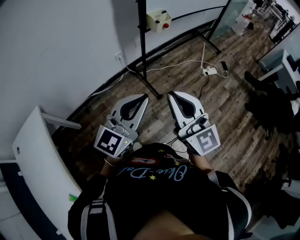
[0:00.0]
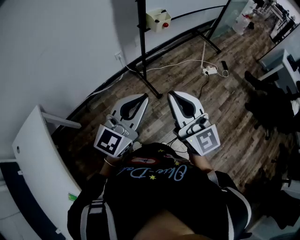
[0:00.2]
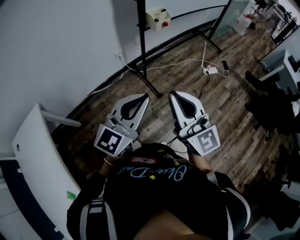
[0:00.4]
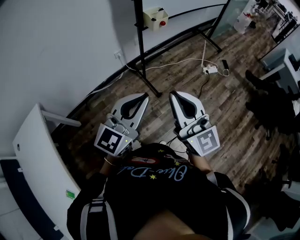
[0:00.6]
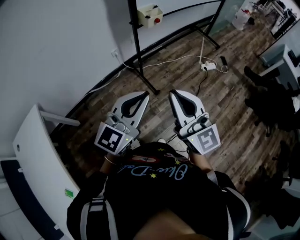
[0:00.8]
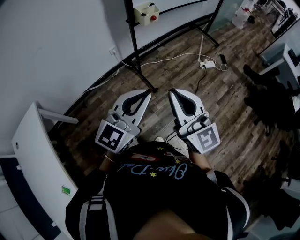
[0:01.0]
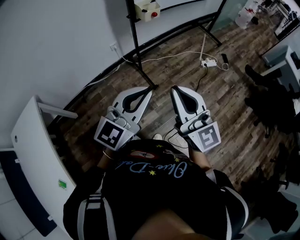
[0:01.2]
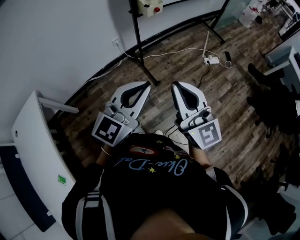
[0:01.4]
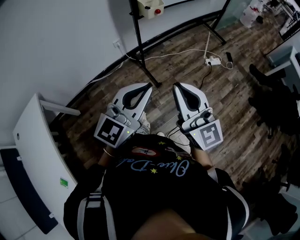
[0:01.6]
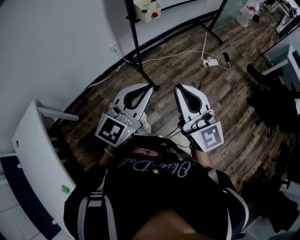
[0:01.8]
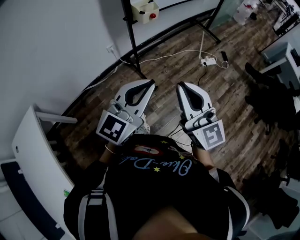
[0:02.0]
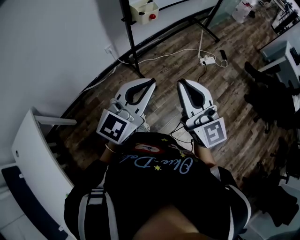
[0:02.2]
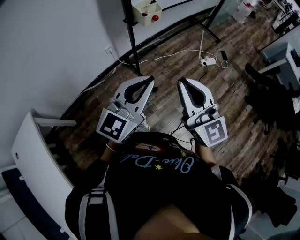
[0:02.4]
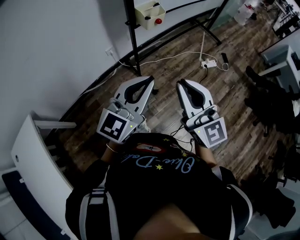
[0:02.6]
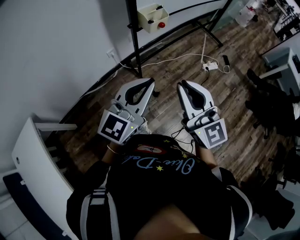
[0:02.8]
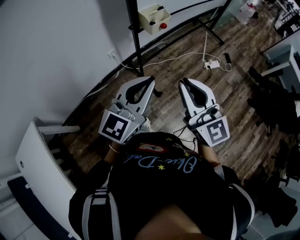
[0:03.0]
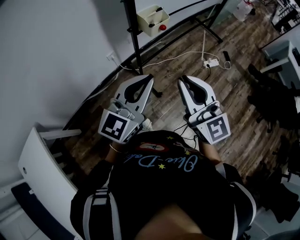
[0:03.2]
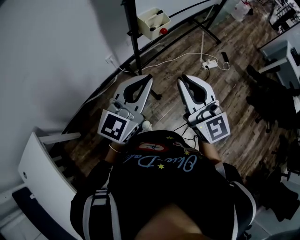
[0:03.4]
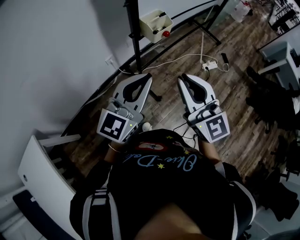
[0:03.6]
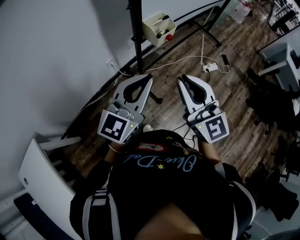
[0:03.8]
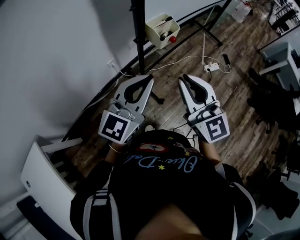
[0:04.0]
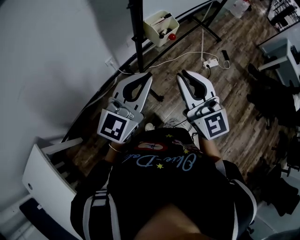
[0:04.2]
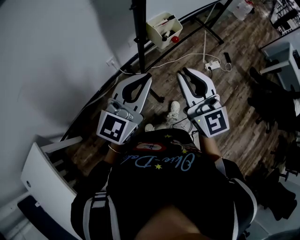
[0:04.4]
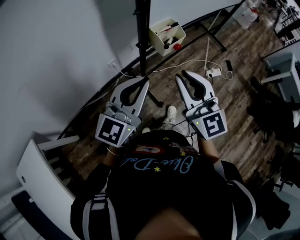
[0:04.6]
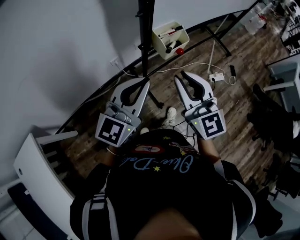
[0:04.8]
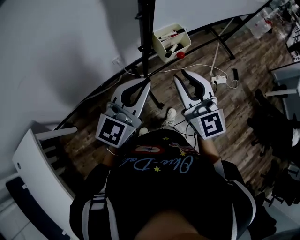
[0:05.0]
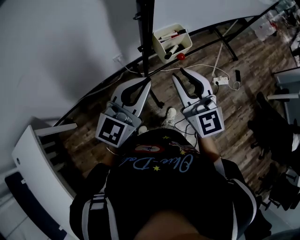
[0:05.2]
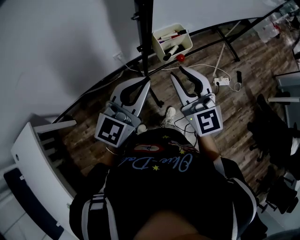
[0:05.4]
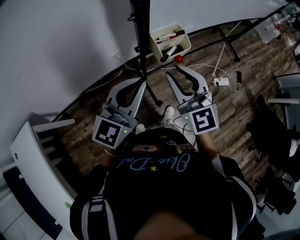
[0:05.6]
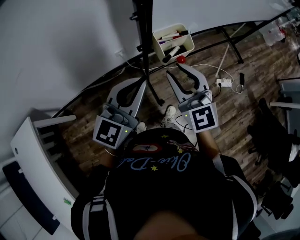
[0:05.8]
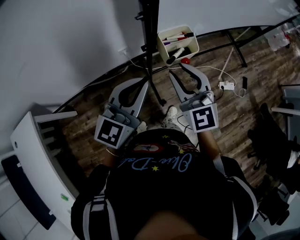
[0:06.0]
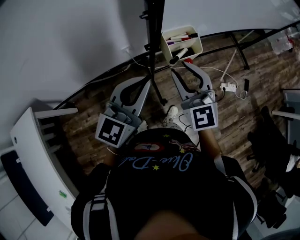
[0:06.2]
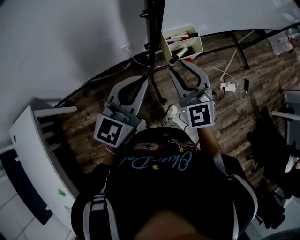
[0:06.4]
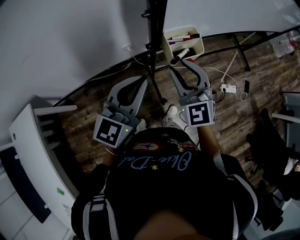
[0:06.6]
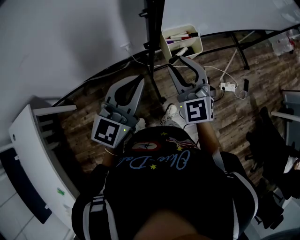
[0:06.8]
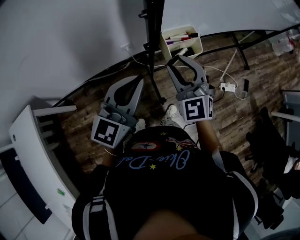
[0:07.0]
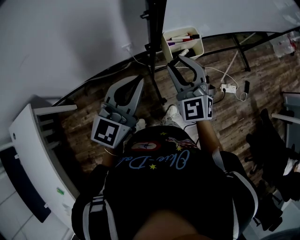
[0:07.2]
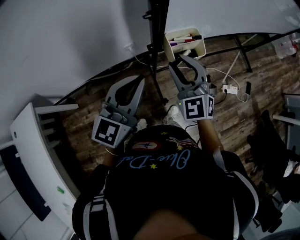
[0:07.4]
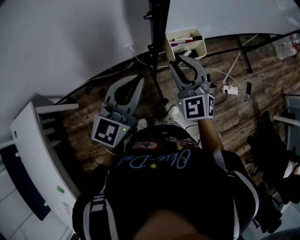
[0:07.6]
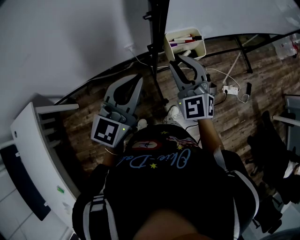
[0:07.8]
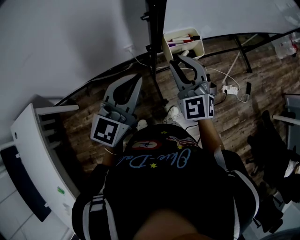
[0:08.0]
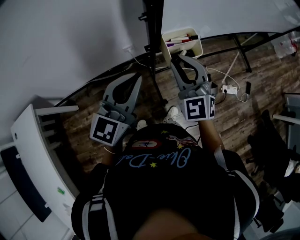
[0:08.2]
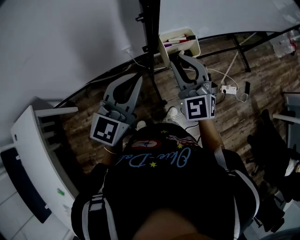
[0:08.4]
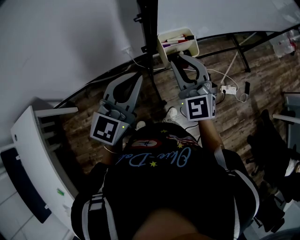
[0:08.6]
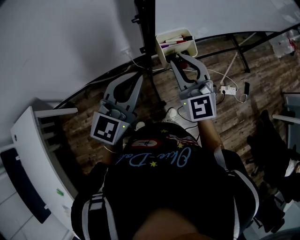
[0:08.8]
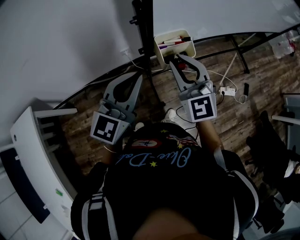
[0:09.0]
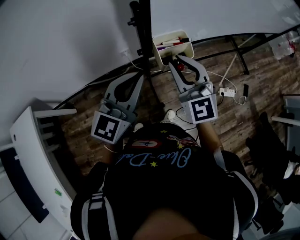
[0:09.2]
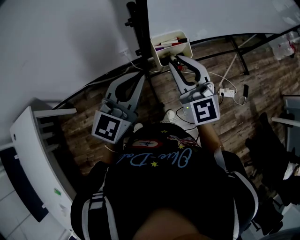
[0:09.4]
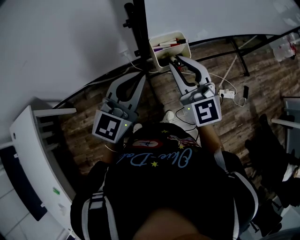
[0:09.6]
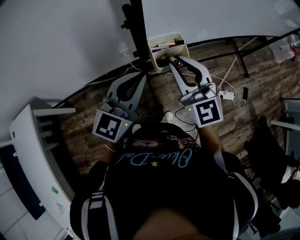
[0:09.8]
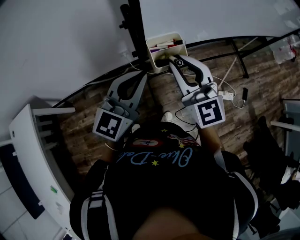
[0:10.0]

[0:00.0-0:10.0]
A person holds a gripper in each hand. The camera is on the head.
0:00.0 to 0:01.4: Both grippers travel together to the right, about 10 cm.
0:01.4 to 0:02.8: The two grippers go roughly 15 cm forward.
0:02.8 to 0:04.2: Both grippers move forward and to the left, roughly 15 cm.
0:04.2 to 0:05.8: The left gripper is displaced forward by about 10 cm. The right gripper goes some 15 cm forward and downward.
0:05.8 to 0:07.2: The right gripper changes place by about 5 cm.
0:07.2 to 0:08.6: The grippers move only a little.
0:08.6 to 0:10.0: The right gripper moves approximately 5 cm. The left gripper is displaced to the right by roughly 5 cm.

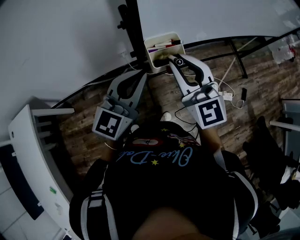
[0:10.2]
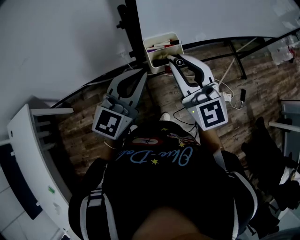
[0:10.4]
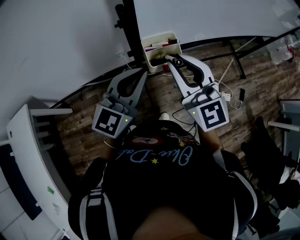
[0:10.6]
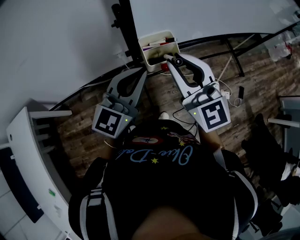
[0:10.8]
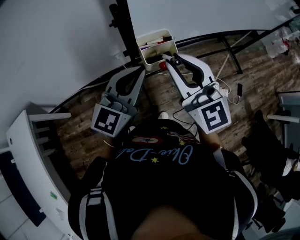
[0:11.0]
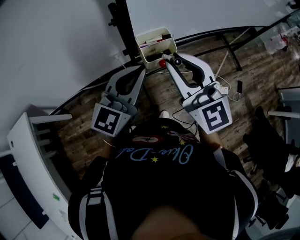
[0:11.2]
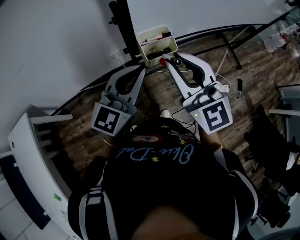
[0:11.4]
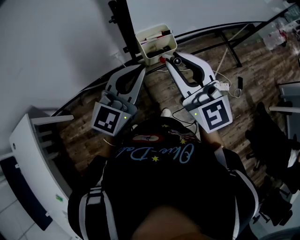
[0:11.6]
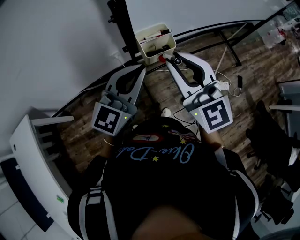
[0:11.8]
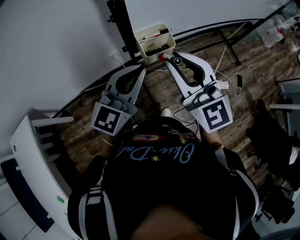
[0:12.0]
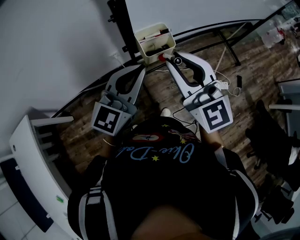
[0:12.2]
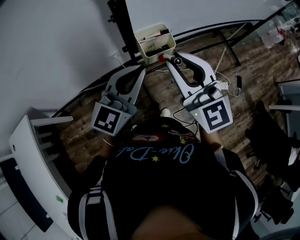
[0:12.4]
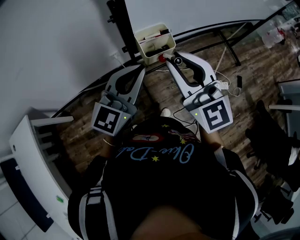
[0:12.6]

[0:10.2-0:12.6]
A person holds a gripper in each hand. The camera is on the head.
0:10.2 to 0:11.4: The right gripper moves about 5 cm.
0:11.4 to 0:12.6: The two grippers keep their place.

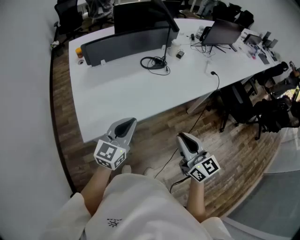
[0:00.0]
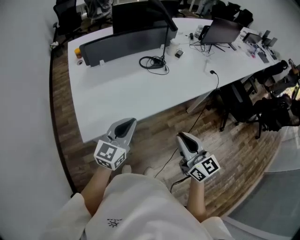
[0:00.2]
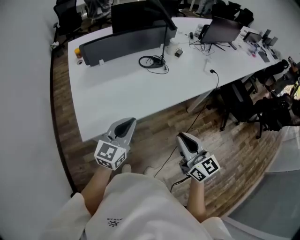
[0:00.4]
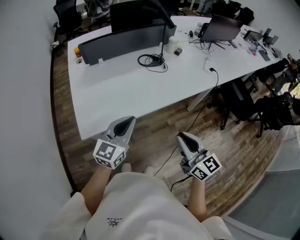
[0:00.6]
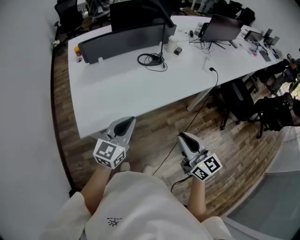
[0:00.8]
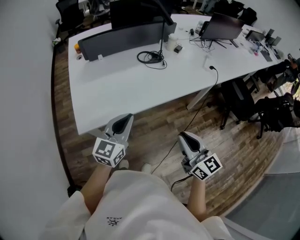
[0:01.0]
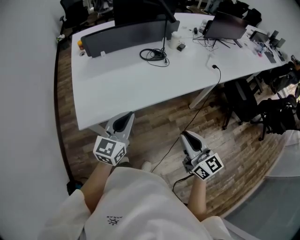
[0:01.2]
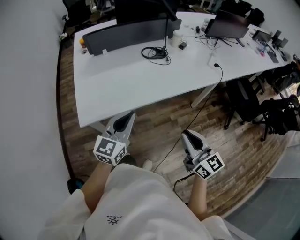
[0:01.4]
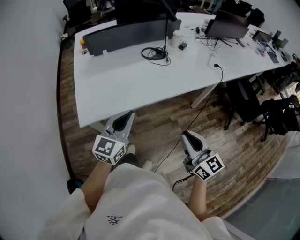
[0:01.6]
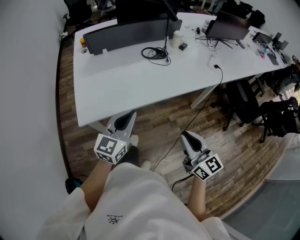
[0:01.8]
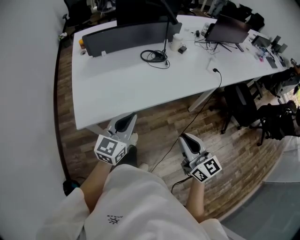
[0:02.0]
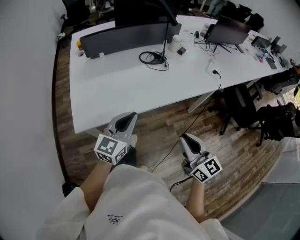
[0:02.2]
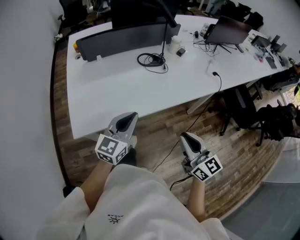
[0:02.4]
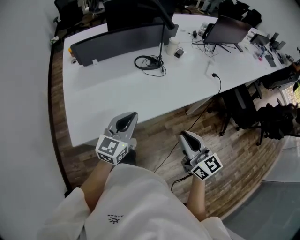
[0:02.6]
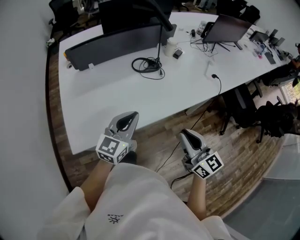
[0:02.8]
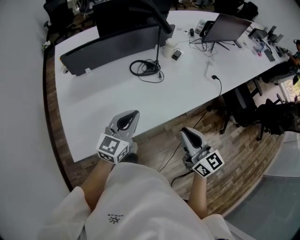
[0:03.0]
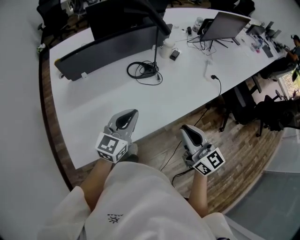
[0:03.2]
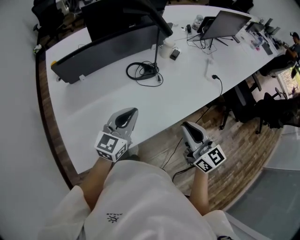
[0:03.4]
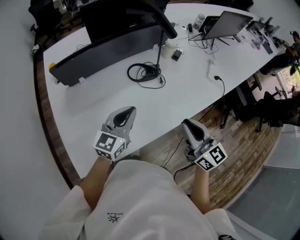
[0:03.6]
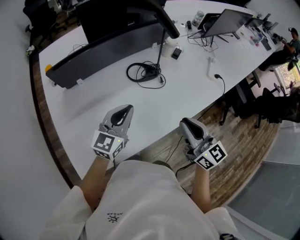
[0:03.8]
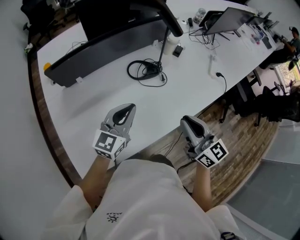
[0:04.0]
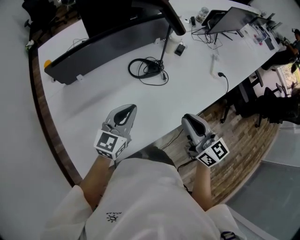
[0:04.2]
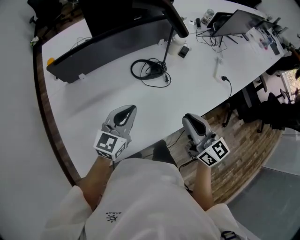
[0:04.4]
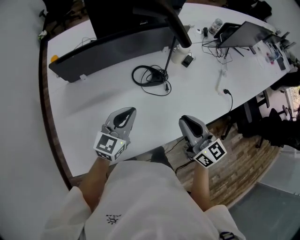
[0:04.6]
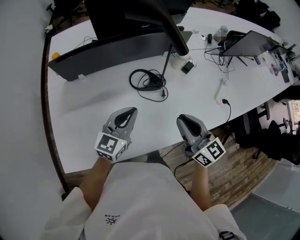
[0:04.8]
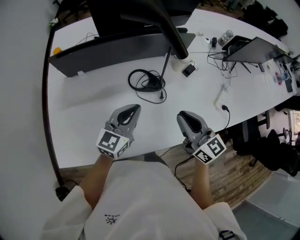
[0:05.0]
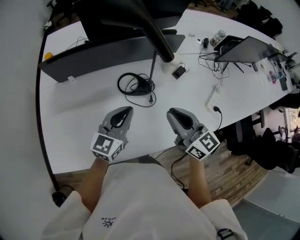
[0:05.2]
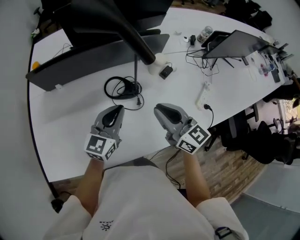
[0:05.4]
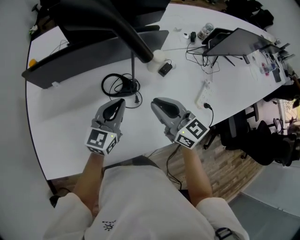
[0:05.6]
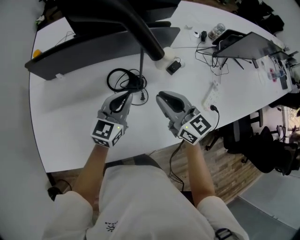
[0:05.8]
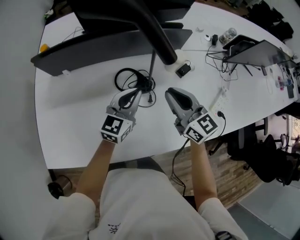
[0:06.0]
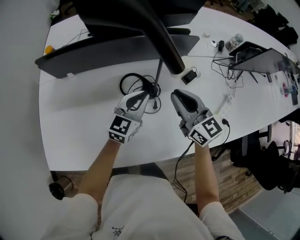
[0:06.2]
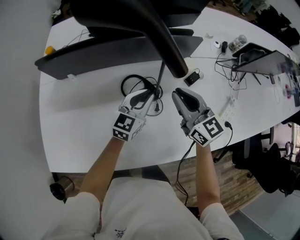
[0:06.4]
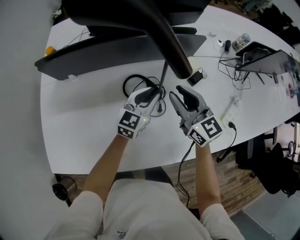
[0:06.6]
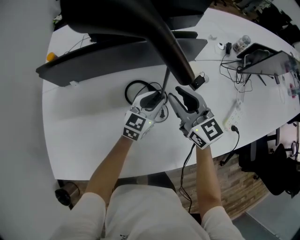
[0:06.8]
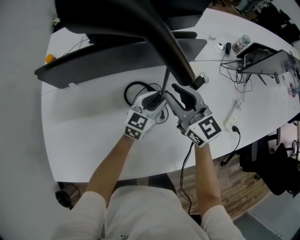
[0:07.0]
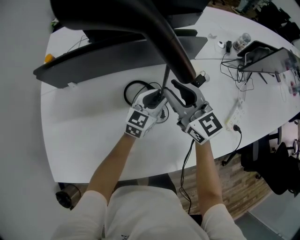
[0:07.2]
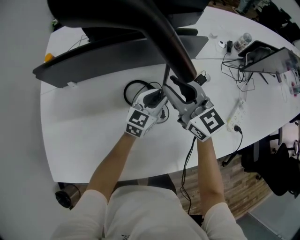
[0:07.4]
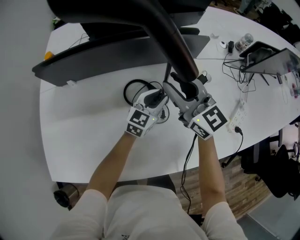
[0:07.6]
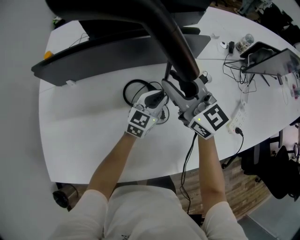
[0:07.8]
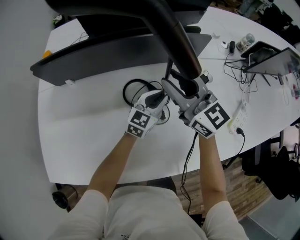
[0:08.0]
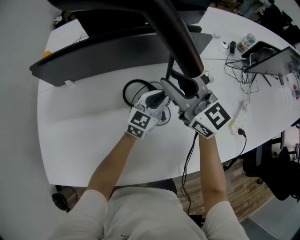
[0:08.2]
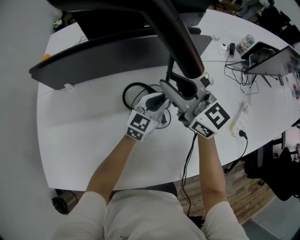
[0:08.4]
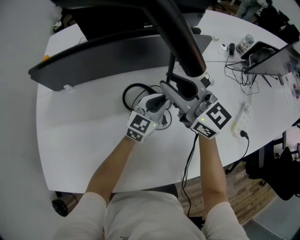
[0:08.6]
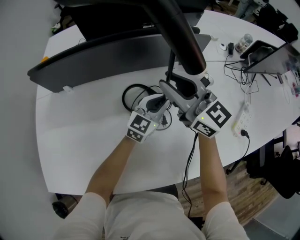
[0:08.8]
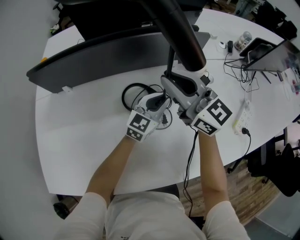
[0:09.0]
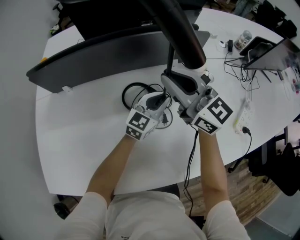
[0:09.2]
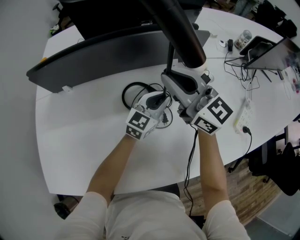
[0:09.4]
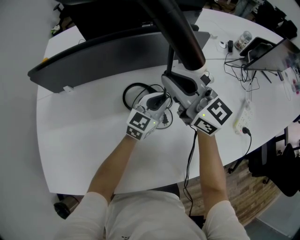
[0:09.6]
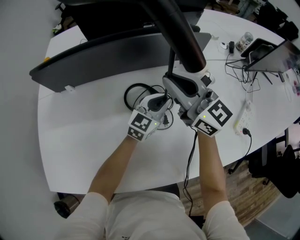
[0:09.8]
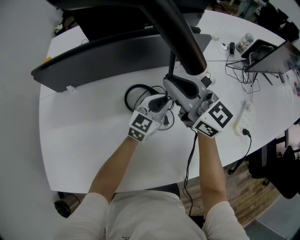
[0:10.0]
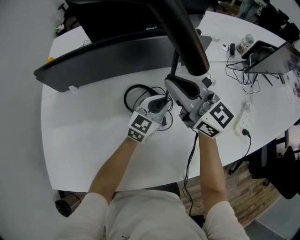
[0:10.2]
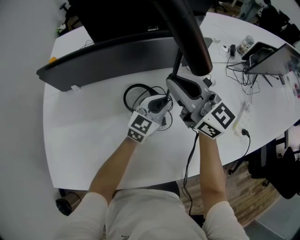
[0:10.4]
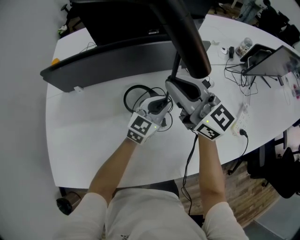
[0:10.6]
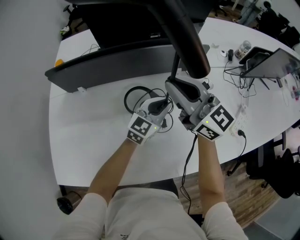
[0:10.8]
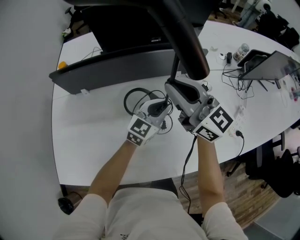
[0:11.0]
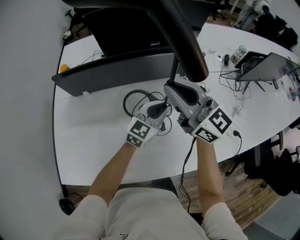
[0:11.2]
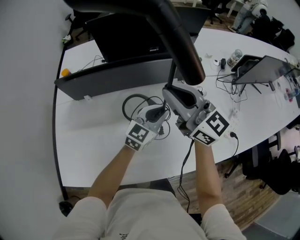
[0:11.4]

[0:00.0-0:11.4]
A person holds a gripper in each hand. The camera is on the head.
0:00.0 to 0:01.4: Both grippers travel together to the right, approximately 5 cm.
0:01.4 to 0:02.8: Both grippers travel together forward, roughly 20 cm.
0:02.8 to 0:04.2: Both grippers move forward, roughly 20 cm.
0:04.2 to 0:05.6: The left gripper moves to the right and forward, roughly 20 cm, while the right gripper goes roughly 25 cm forward and to the right, and rotates approximately 30 degrees.
0:05.6 to 0:07.2: The right gripper goes some 15 cm forward. The left gripper is displaced downward, forward and to the right by some 20 cm, and opens.
0:07.2 to 0:08.6: The grippers make only small movements.
0:08.6 to 0:10.0: Neither gripper changes place.
0:10.0 to 0:11.4: Both grippers move upward, roughly 15 cm.
